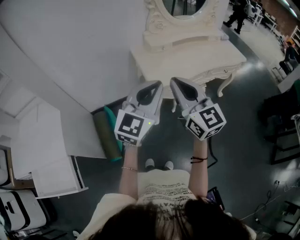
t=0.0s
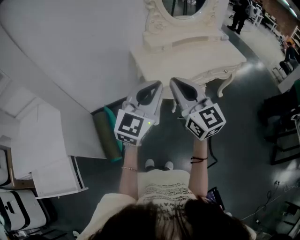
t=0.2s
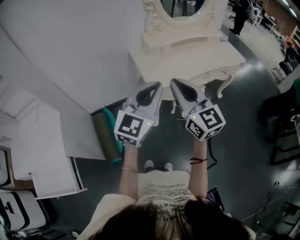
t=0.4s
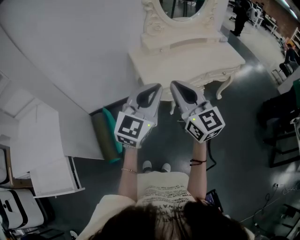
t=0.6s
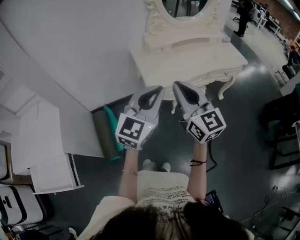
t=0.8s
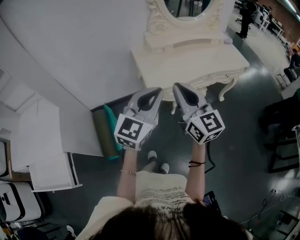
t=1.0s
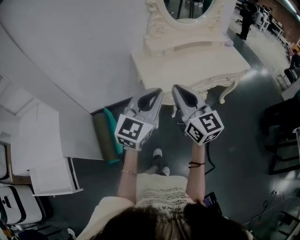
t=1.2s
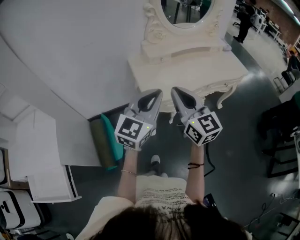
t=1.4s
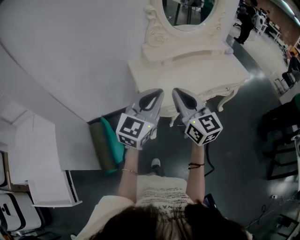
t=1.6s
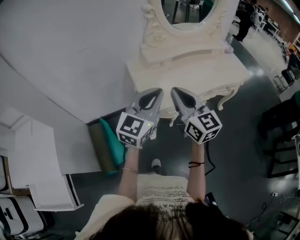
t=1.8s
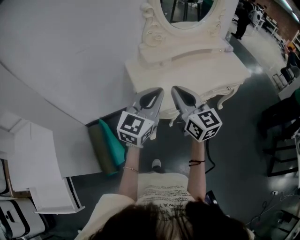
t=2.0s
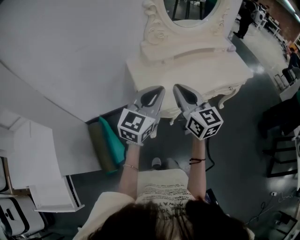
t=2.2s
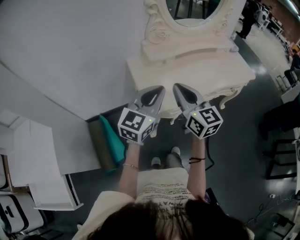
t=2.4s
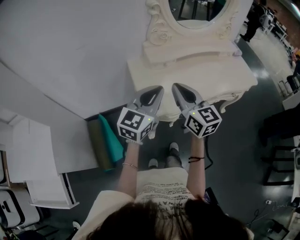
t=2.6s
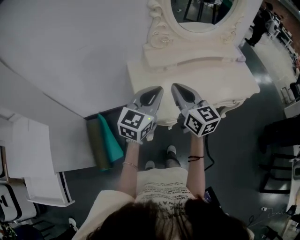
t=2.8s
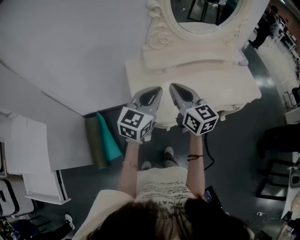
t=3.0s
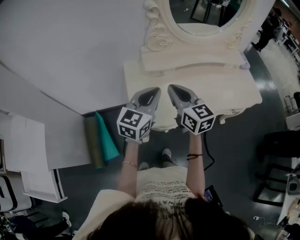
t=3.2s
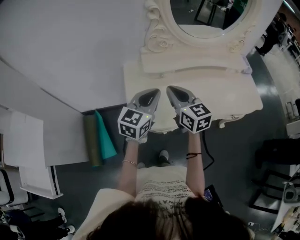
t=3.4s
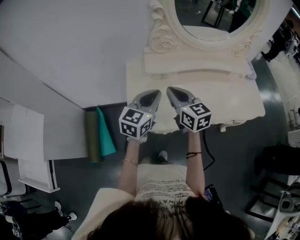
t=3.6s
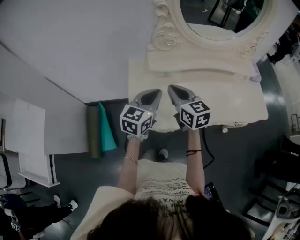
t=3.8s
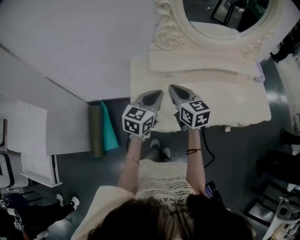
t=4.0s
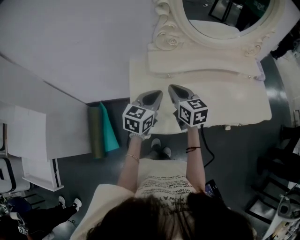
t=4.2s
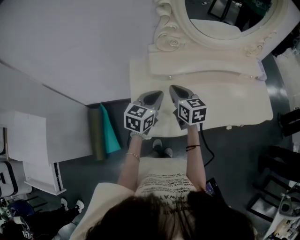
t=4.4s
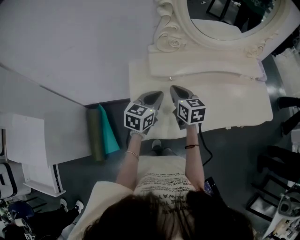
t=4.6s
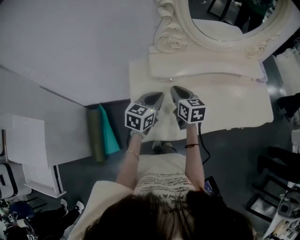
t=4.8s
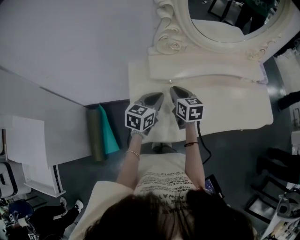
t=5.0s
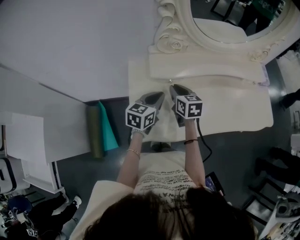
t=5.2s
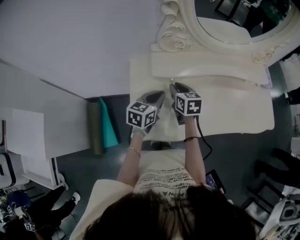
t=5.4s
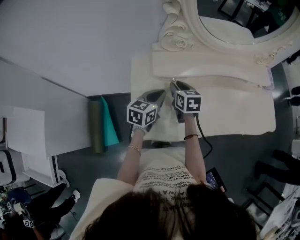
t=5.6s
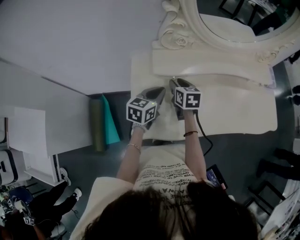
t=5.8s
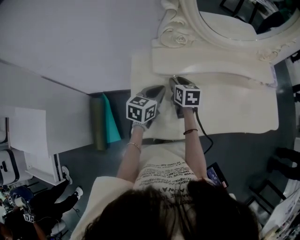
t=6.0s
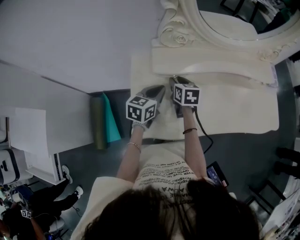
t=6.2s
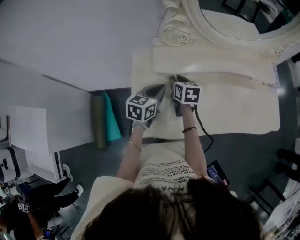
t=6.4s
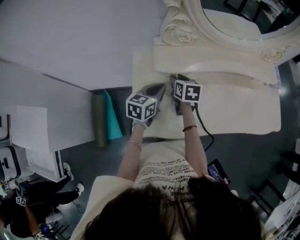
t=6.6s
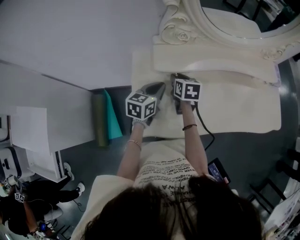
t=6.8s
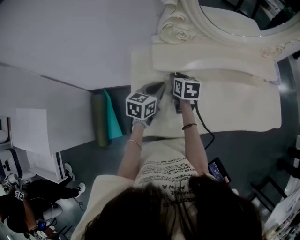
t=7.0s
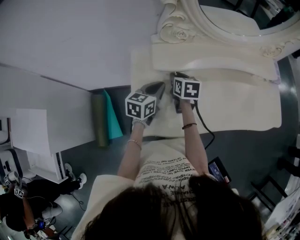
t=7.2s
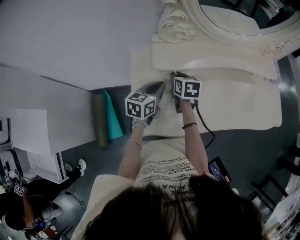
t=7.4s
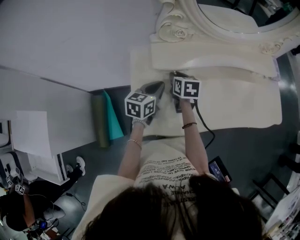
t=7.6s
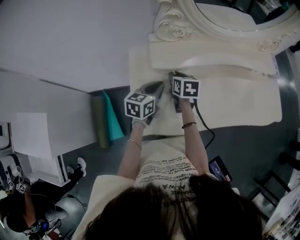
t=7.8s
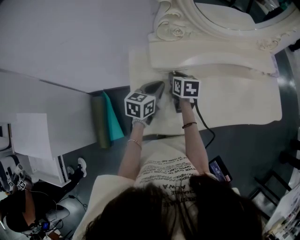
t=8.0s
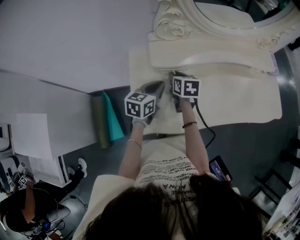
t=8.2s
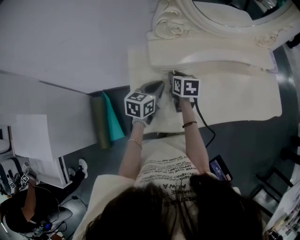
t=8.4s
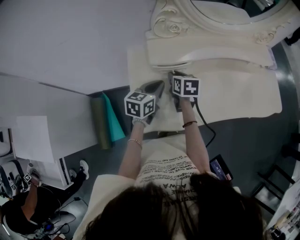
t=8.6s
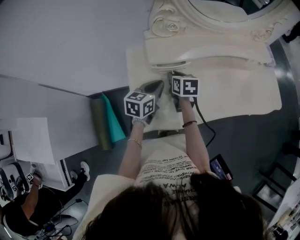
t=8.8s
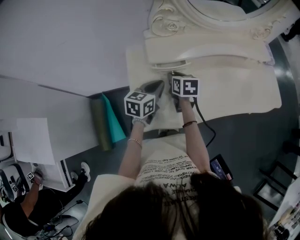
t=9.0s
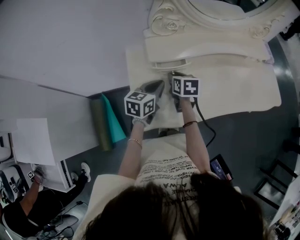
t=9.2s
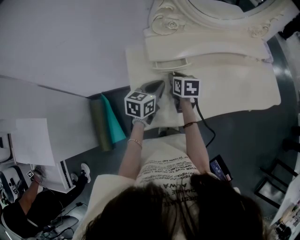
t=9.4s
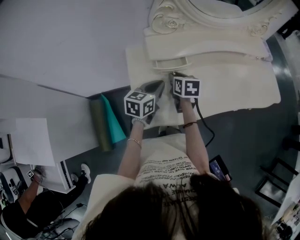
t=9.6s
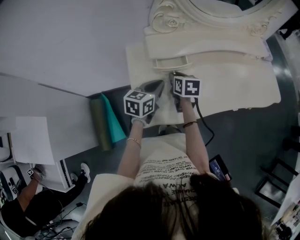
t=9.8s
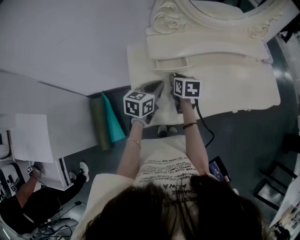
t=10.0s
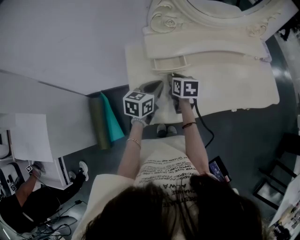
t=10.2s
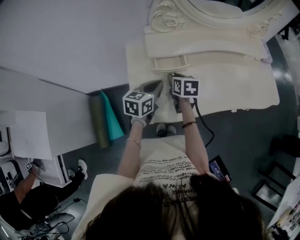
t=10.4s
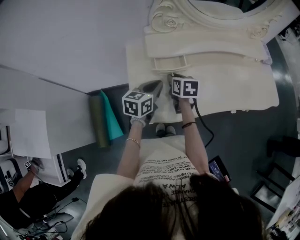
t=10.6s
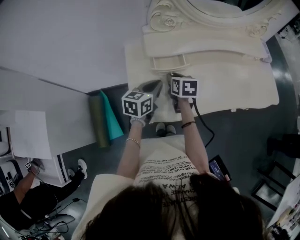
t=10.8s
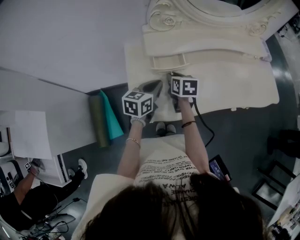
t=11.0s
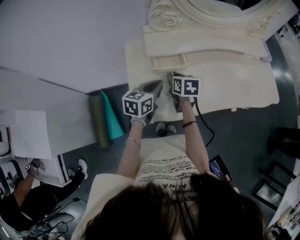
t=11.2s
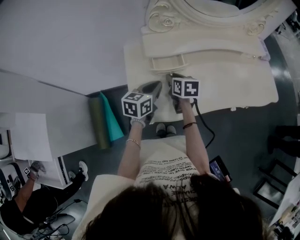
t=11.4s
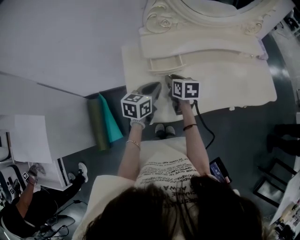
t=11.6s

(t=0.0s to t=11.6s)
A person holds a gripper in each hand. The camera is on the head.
t=0.0s - t=1.4s: The two grippers go roughly 10 cm forward.
t=1.4s - t=2.8s: The two grippers go about 20 cm forward.
t=2.8s - t=4.4s: The two grippers go approximately 20 cm forward and downward. The left gripper changes its angle by about 20 degrees. The right gripper swivels about 20 degrees.
t=4.4s - t=5.8s: The right gripper shifts some 10 cm downward and forward, and opens up. The left gripper travels downward and forward by some 5 cm.
t=5.8s - t=8.8s: There are only small adjustments of the grippers.
t=8.8s - t=11.6s: The grippers move only a little.

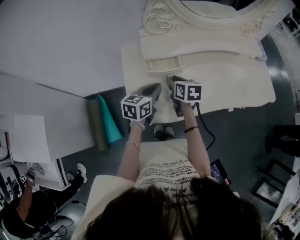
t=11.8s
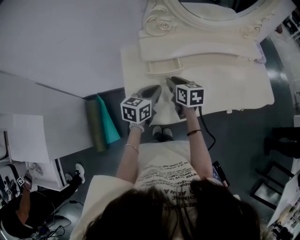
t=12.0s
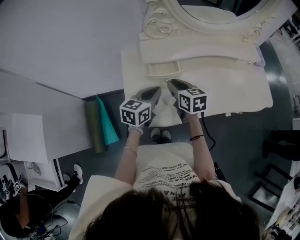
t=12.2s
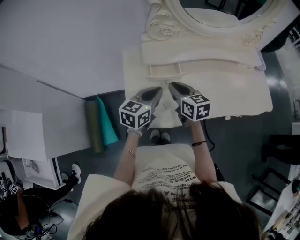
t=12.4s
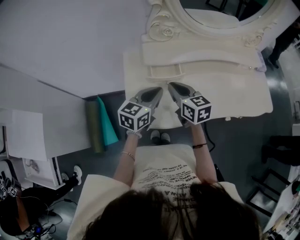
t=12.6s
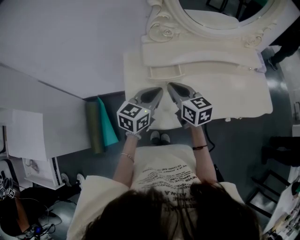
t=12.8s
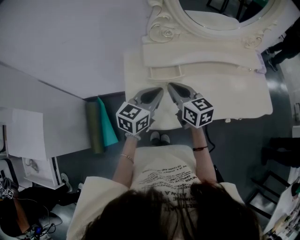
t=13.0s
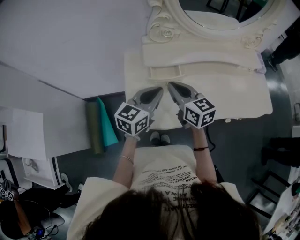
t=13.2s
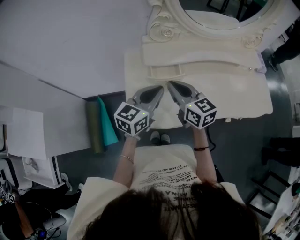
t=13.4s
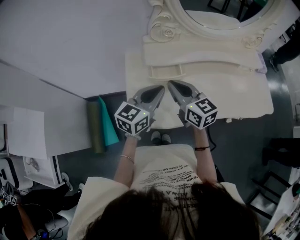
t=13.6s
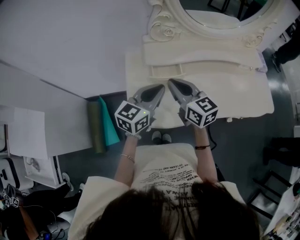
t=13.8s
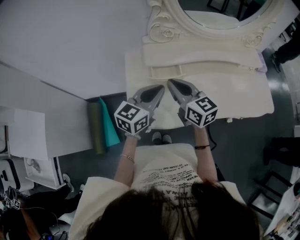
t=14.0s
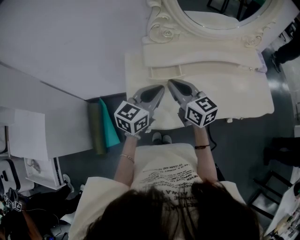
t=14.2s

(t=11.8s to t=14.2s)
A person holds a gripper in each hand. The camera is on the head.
t=11.8s - t=13.0s: The two grippers go roughly 10 cm upward. The right gripper rotates about 30 degrees, and closes.
t=13.0s - t=14.2s: There are only small adjustments of the grippers.

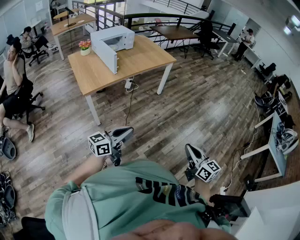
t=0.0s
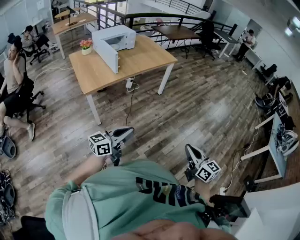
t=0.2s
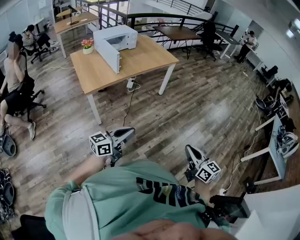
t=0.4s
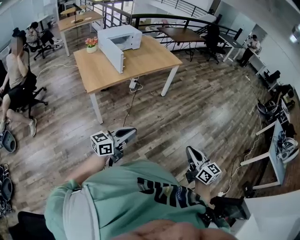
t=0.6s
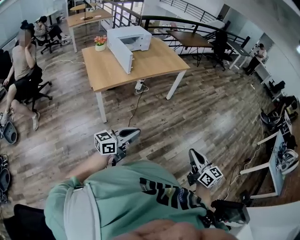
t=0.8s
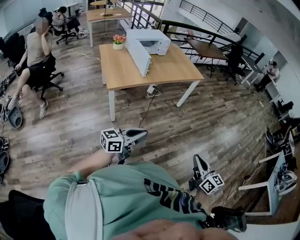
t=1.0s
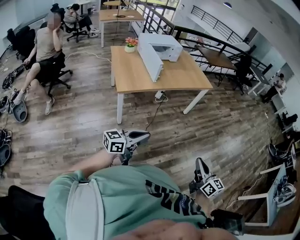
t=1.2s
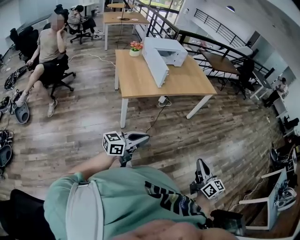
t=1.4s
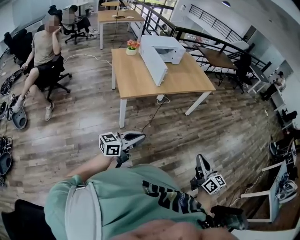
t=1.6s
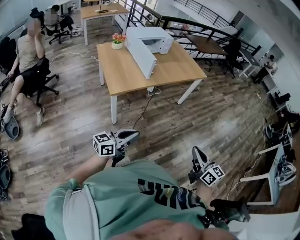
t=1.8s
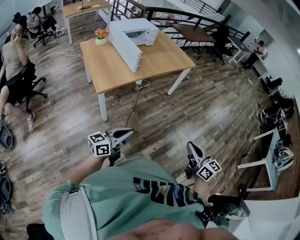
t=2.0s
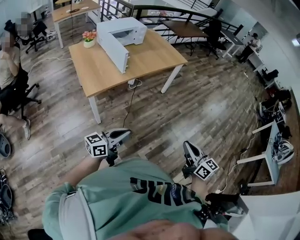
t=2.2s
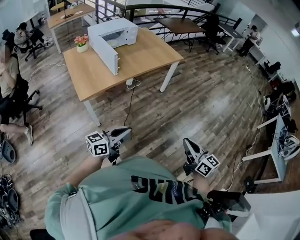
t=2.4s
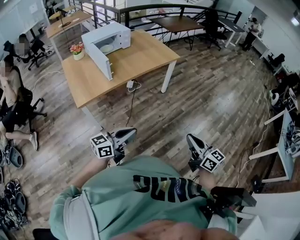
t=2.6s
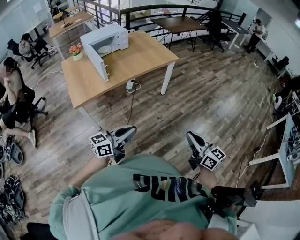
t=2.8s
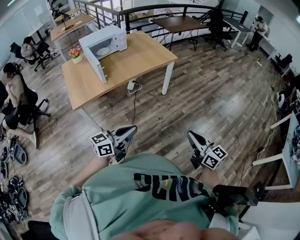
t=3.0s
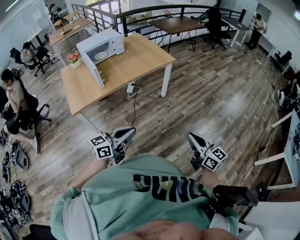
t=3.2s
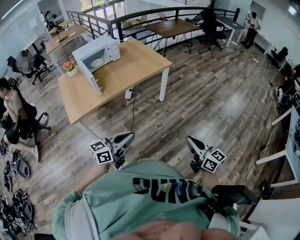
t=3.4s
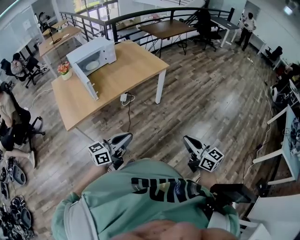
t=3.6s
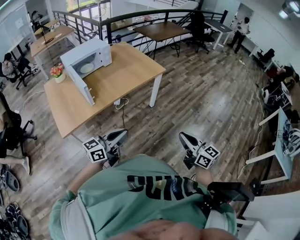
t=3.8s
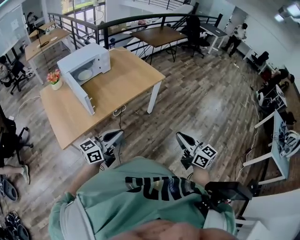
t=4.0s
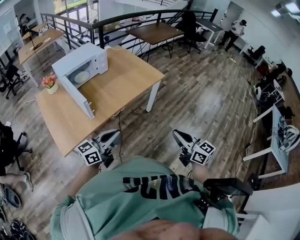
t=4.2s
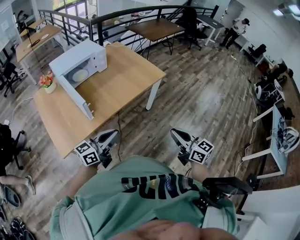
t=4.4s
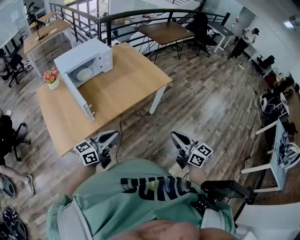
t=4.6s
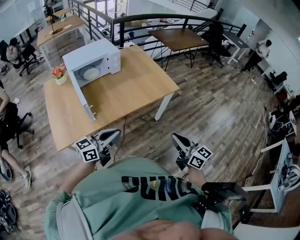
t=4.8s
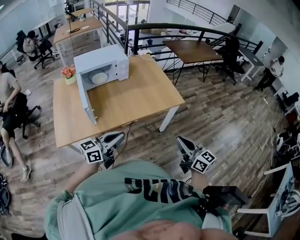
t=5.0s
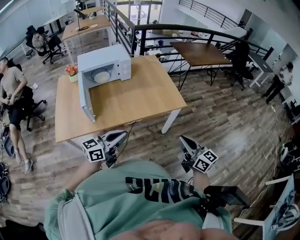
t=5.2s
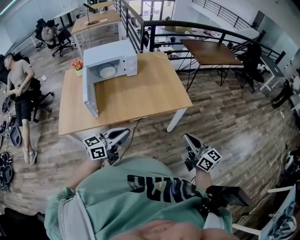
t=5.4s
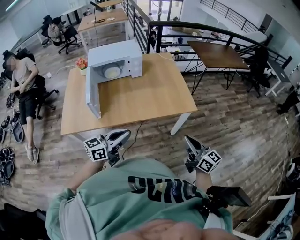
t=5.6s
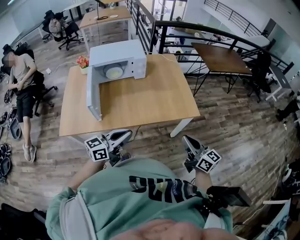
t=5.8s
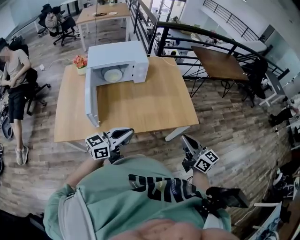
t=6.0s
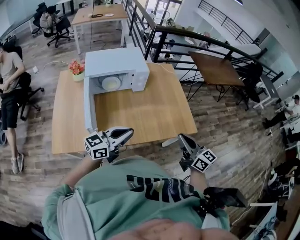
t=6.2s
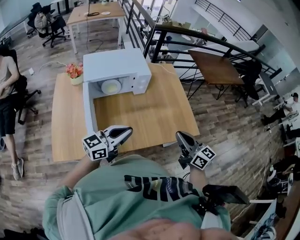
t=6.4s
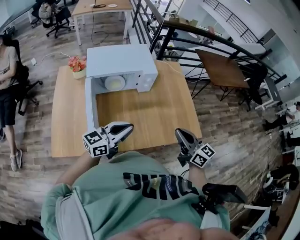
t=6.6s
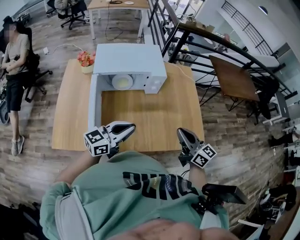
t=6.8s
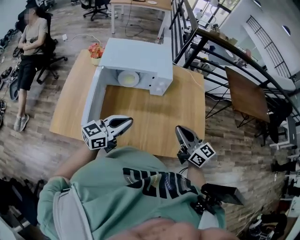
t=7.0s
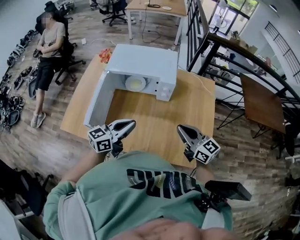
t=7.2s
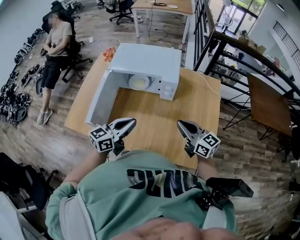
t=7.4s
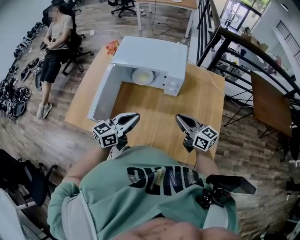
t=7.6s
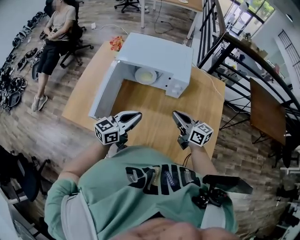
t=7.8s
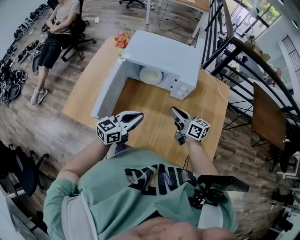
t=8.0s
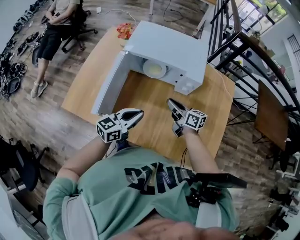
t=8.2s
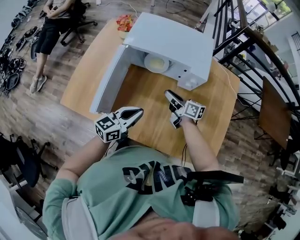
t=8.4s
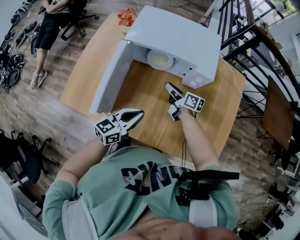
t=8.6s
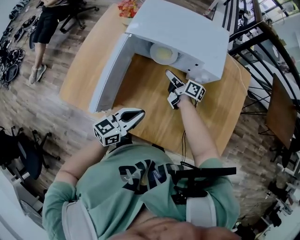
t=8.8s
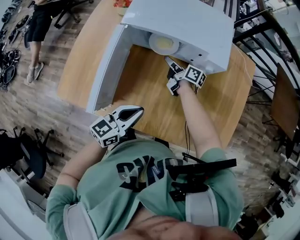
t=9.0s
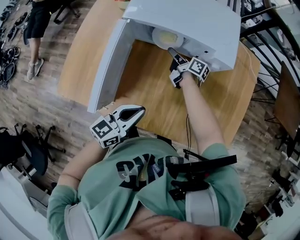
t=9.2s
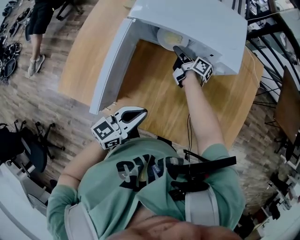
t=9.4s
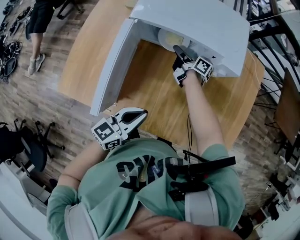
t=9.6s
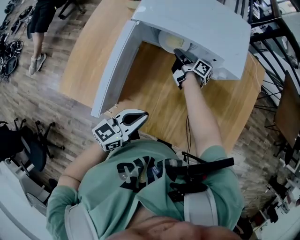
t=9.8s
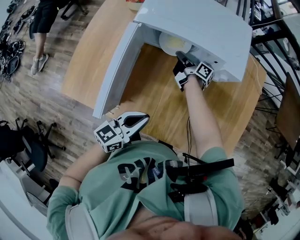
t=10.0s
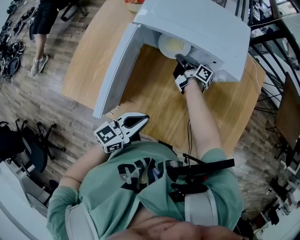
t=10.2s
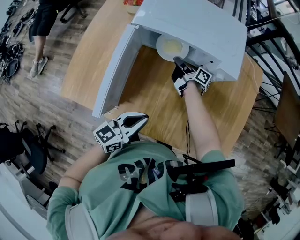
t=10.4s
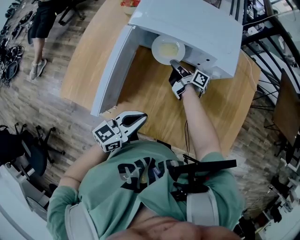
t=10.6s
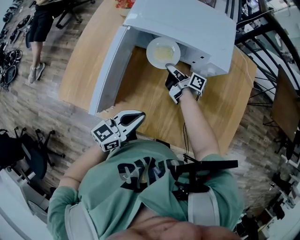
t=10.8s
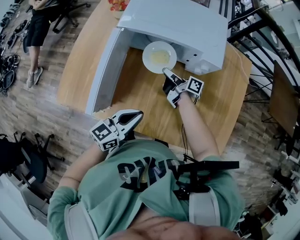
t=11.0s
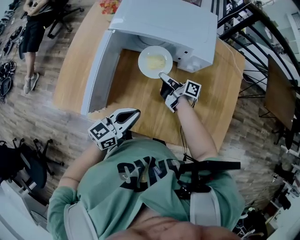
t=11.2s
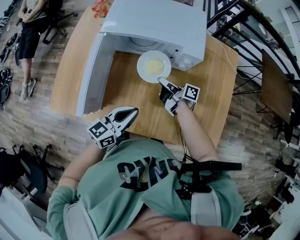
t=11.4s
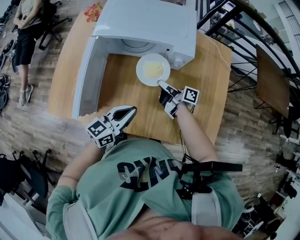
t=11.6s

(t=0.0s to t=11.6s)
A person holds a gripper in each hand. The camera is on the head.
t=0.0s - t=1.4s: The left gripper is displaced to the left by about 15 cm; the right gripper heads to the left and forward, covering about 15 cm.
t=1.4s - t=2.8s: Both grippers travel together to the right and forward, about 25 cm.
t=2.8s - t=4.4s: Both grippers move forward and to the left, some 30 cm.
t=4.4s - t=5.8s: The right gripper shifts by about 35 cm, and turns by approximately 30 degrees. Meanwhile the left gripper moves approximately 20 cm, and swivels approximately 30 degrees.
t=5.8s - t=7.2s: The right gripper ends up approximately 40 cm from where it was, and turns by some 30 degrees. The left gripper shifts by approximately 30 cm, and rotates roughly 30 degrees.
t=7.2s - t=8.8s: The right gripper moves forward, downward and to the left, about 40 cm, rotates around the line of its fingers by approximately 50 degrees, clockwise from behind, and opens its fingers, while the left gripper goes approximately 15 cm downward and to the left.
t=8.8s - t=10.2s: The right gripper moves forward and downward, approximately 10 cm, and closes.
t=10.2s - t=11.6s: The right gripper travels backward, to the right and upward by roughly 20 cm. The left gripper moves to the right, approximately 5 cm.
